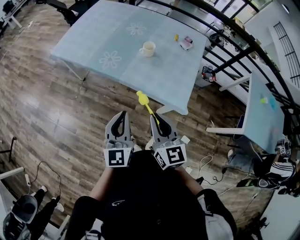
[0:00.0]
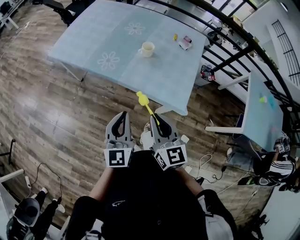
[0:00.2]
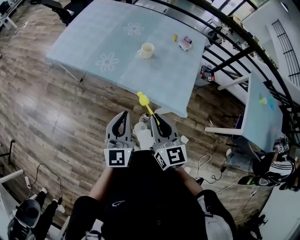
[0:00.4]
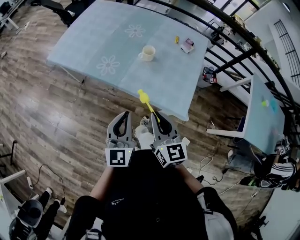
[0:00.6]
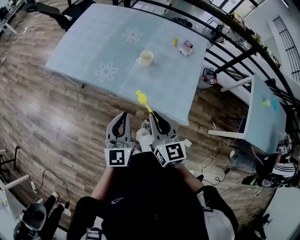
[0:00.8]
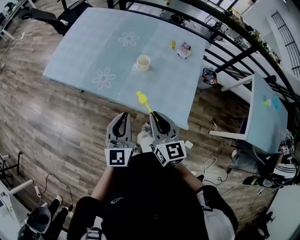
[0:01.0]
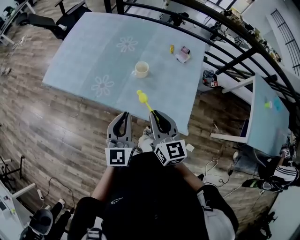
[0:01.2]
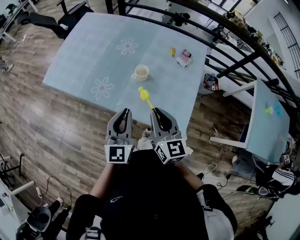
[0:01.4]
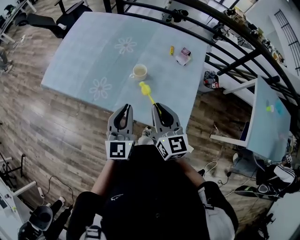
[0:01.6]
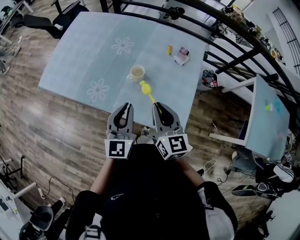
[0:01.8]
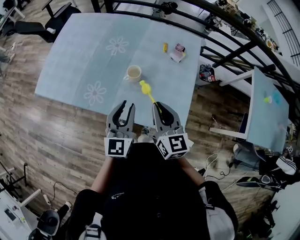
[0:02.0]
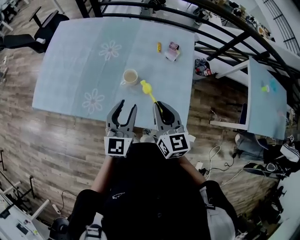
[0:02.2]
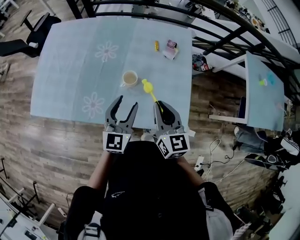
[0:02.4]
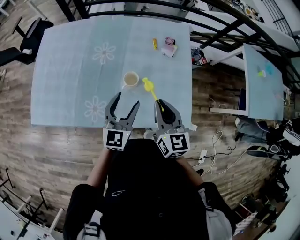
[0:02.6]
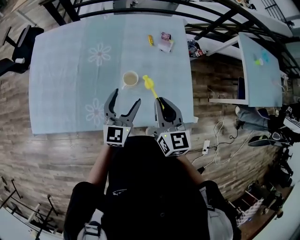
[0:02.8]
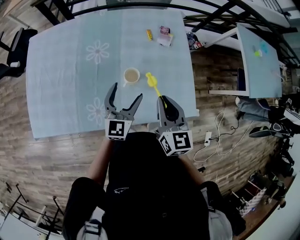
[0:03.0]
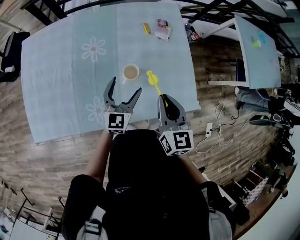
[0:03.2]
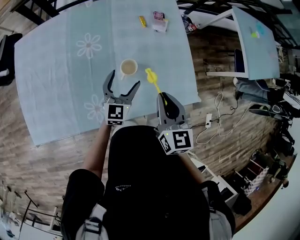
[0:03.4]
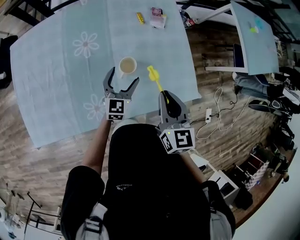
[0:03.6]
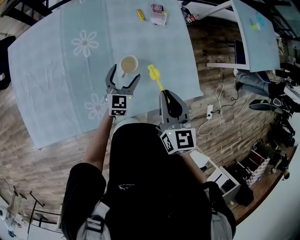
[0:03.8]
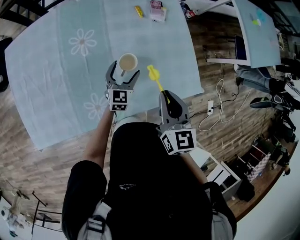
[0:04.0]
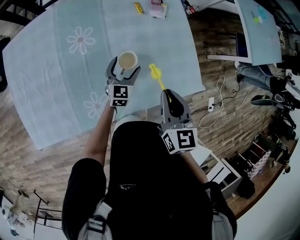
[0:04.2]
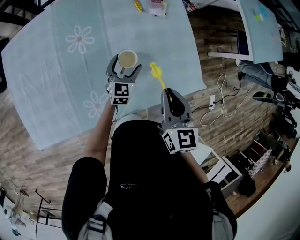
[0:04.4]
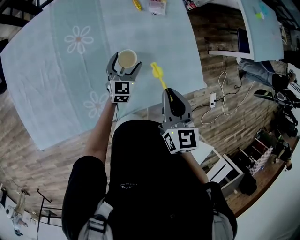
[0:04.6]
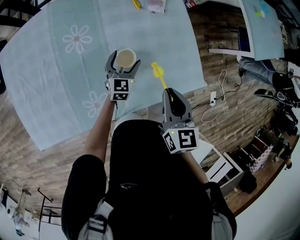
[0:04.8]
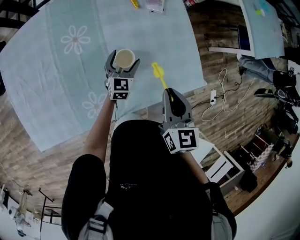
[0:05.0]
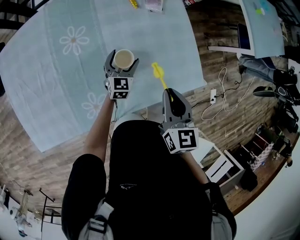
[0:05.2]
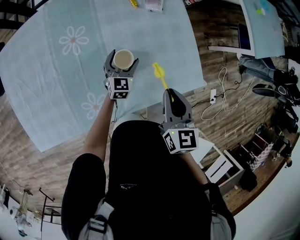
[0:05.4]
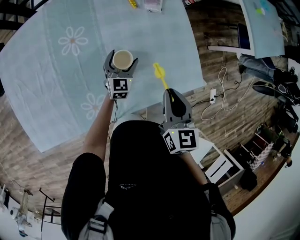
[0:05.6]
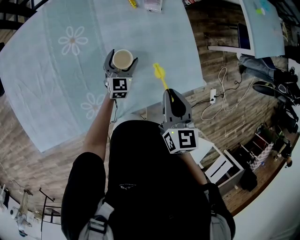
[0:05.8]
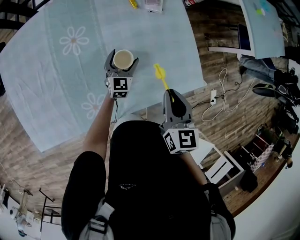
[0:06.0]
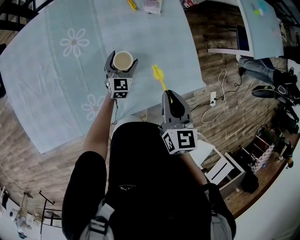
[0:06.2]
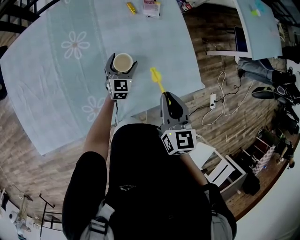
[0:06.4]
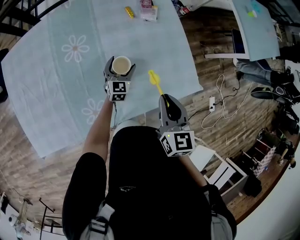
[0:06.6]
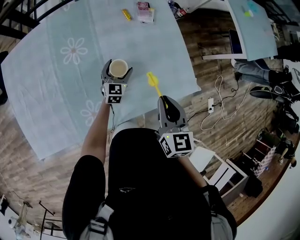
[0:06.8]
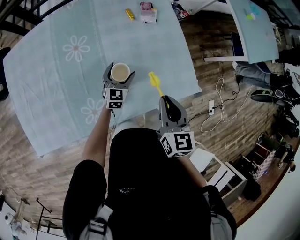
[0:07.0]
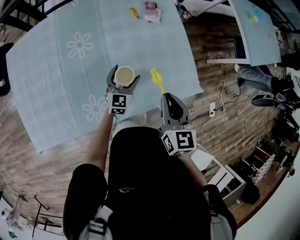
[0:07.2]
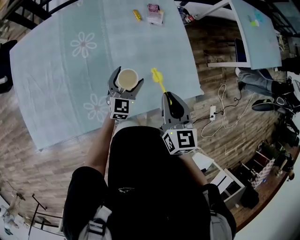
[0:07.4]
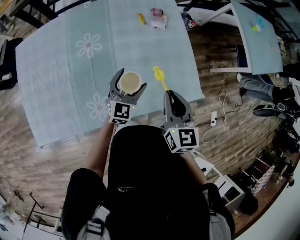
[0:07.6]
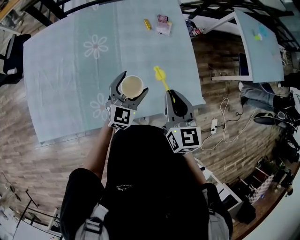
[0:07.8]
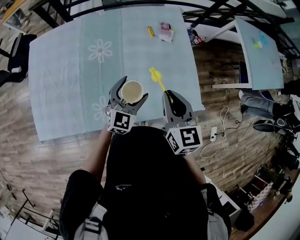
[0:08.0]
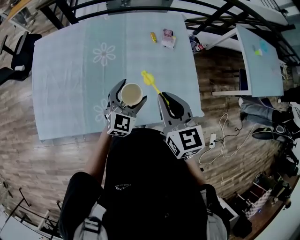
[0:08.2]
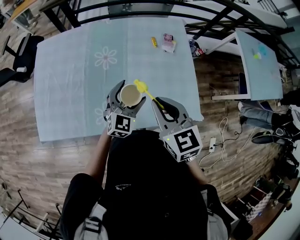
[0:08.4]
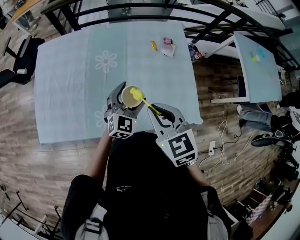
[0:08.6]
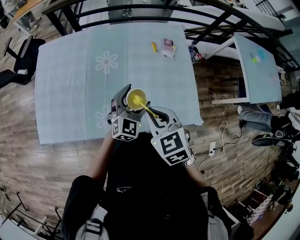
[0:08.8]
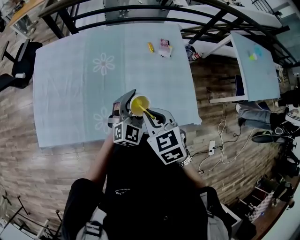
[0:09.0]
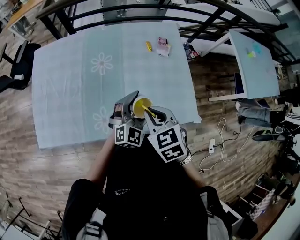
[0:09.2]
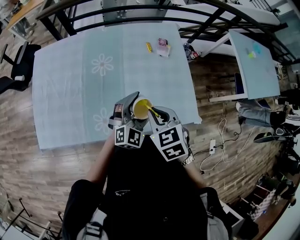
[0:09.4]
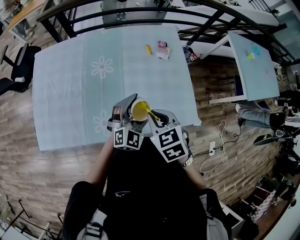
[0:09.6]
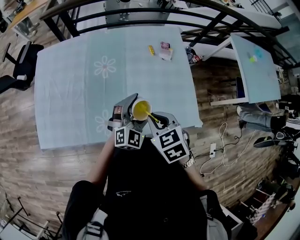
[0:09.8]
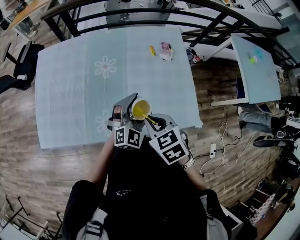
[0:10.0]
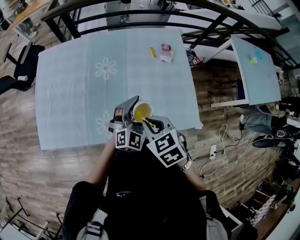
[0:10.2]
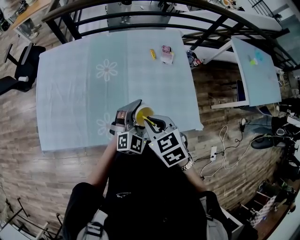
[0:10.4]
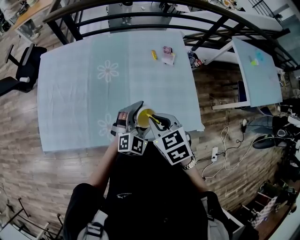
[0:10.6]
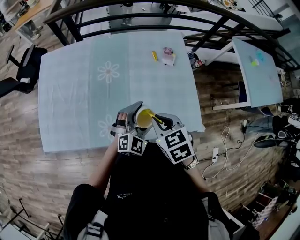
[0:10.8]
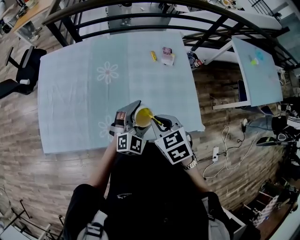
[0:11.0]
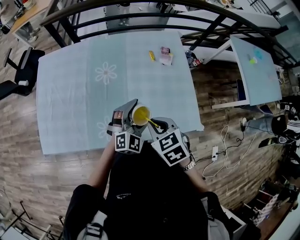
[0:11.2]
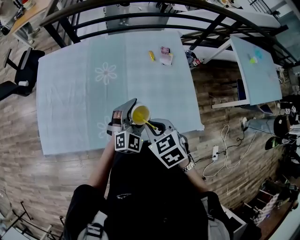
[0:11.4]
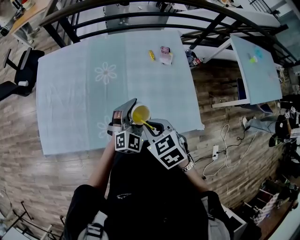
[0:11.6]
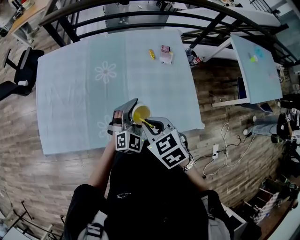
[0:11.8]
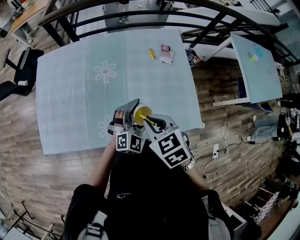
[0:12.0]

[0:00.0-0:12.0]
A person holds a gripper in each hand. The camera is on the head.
0:00.0 to 0:01.6: The grippers both shift forward by approximately 25 cm.
0:01.6 to 0:03.0: The left gripper changes place by roughly 20 cm, turns by roughly 30 degrees, and opens; the right gripper ends up some 10 cm from where it was, and turns by about 30 degrees.
0:03.0 to 0:04.4: The left gripper is displaced downward and forward by roughly 20 cm, and swivels roughly 20 degrees.
0:04.4 to 0:06.0: The grippers make only small movements.
0:06.0 to 0:07.6: The left gripper moves upward and backward, about 15 cm.
0:07.6 to 0:09.0: The right gripper travels to the left by about 10 cm, and swivels roughly 40 degrees. The left gripper goes roughly 10 cm upward.
0:09.0 to 0:12.0: There are only small adjustments of the grippers.

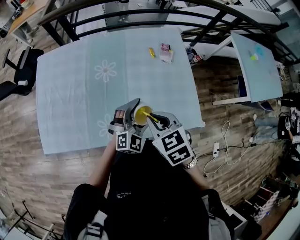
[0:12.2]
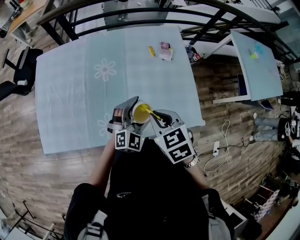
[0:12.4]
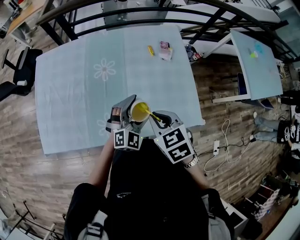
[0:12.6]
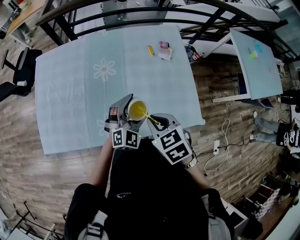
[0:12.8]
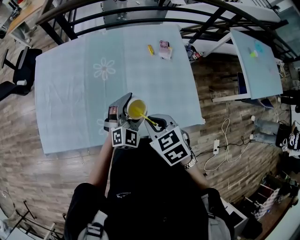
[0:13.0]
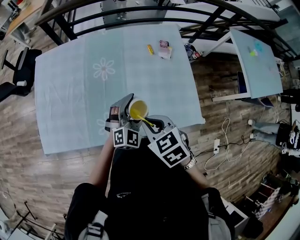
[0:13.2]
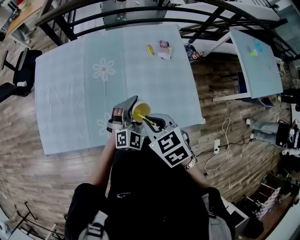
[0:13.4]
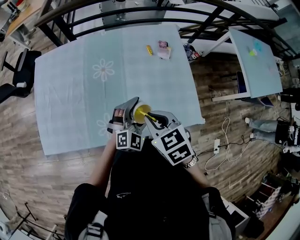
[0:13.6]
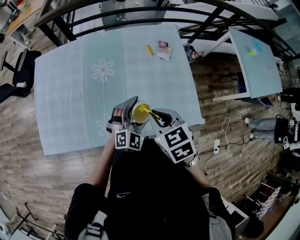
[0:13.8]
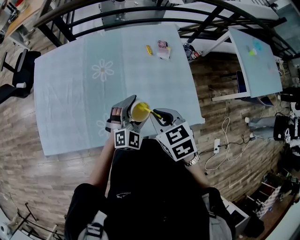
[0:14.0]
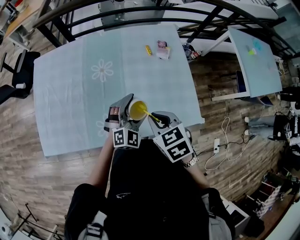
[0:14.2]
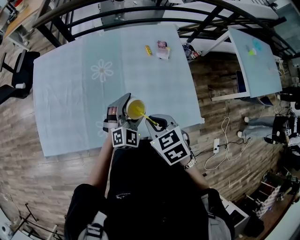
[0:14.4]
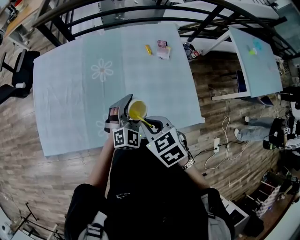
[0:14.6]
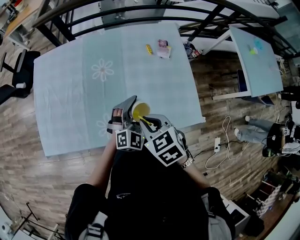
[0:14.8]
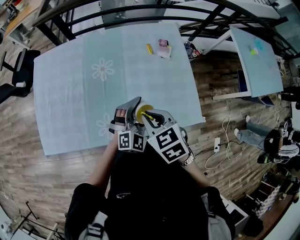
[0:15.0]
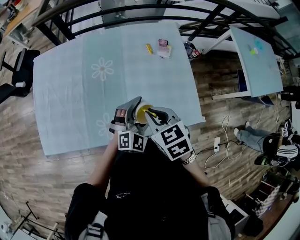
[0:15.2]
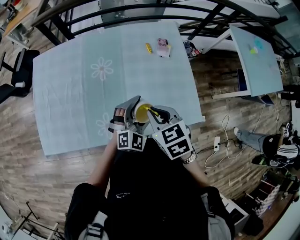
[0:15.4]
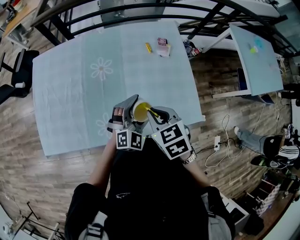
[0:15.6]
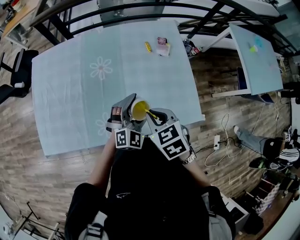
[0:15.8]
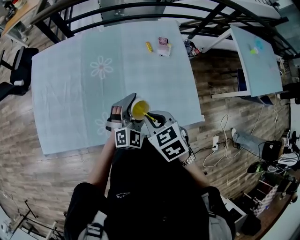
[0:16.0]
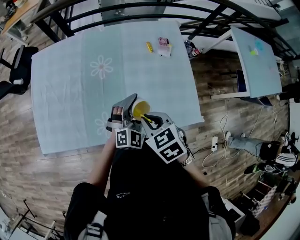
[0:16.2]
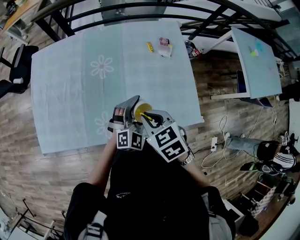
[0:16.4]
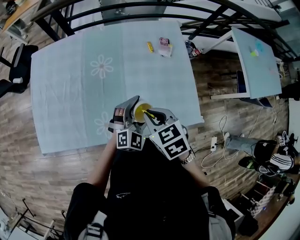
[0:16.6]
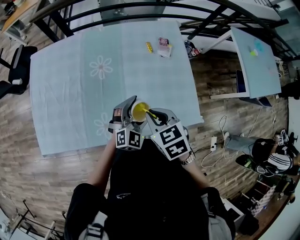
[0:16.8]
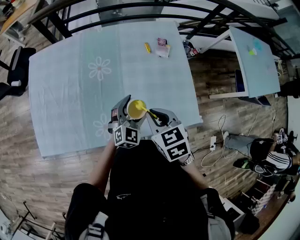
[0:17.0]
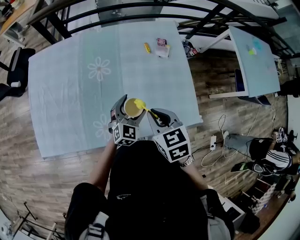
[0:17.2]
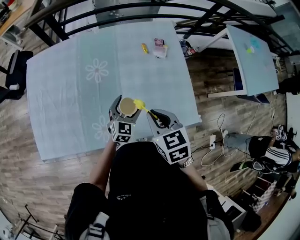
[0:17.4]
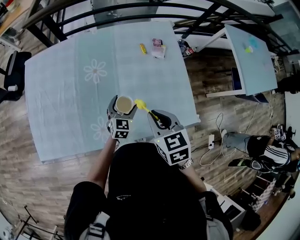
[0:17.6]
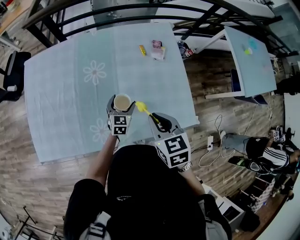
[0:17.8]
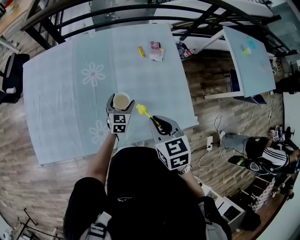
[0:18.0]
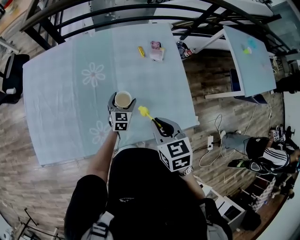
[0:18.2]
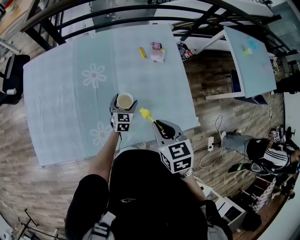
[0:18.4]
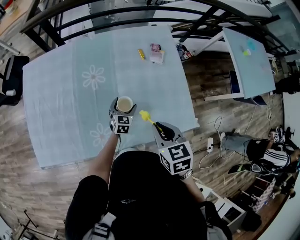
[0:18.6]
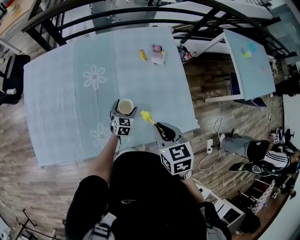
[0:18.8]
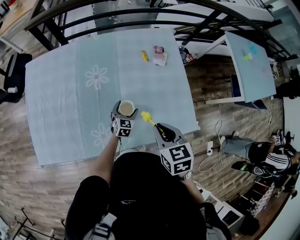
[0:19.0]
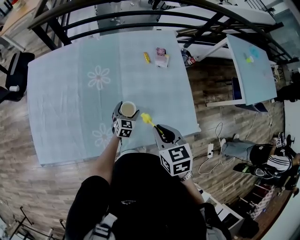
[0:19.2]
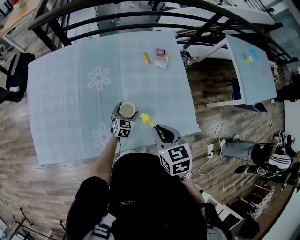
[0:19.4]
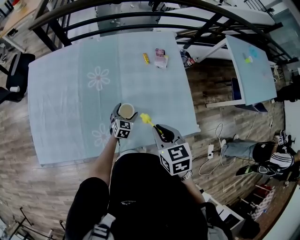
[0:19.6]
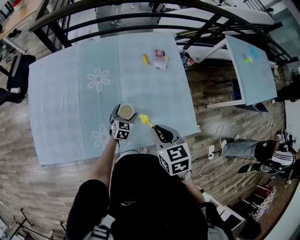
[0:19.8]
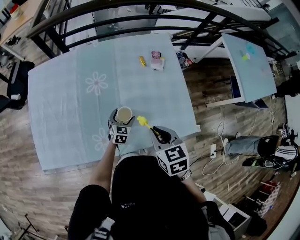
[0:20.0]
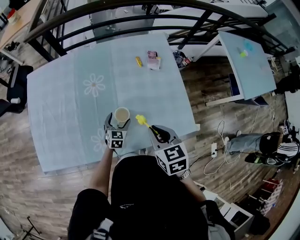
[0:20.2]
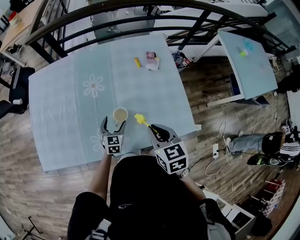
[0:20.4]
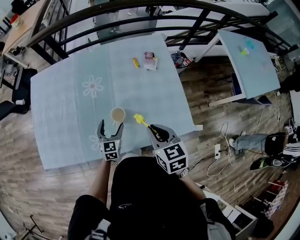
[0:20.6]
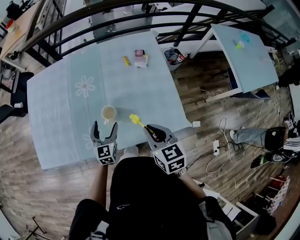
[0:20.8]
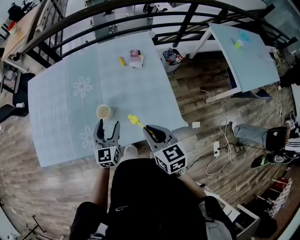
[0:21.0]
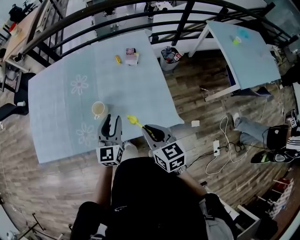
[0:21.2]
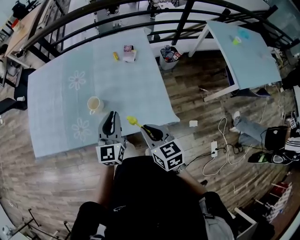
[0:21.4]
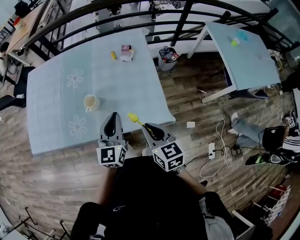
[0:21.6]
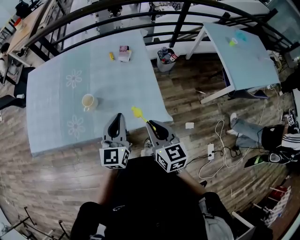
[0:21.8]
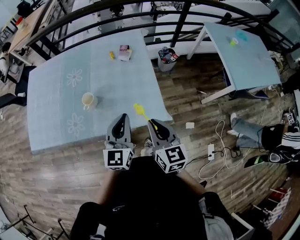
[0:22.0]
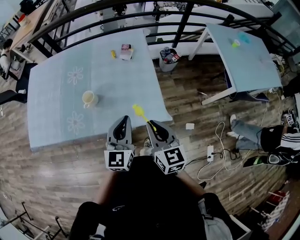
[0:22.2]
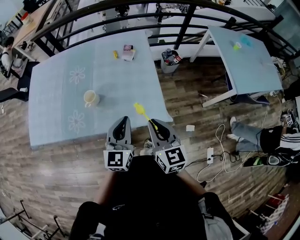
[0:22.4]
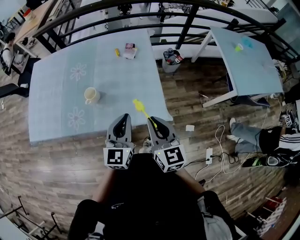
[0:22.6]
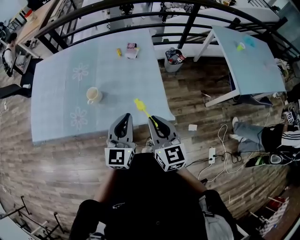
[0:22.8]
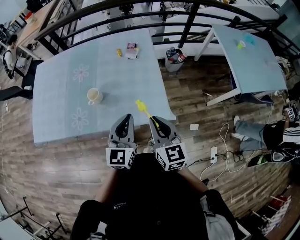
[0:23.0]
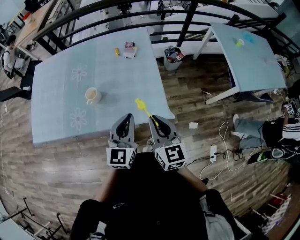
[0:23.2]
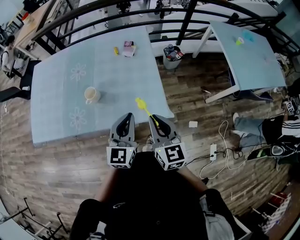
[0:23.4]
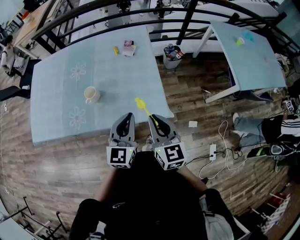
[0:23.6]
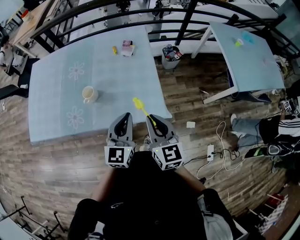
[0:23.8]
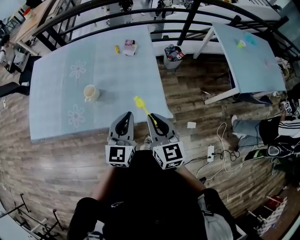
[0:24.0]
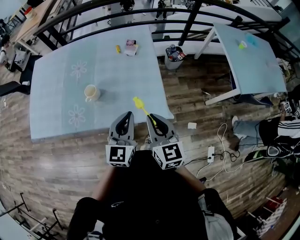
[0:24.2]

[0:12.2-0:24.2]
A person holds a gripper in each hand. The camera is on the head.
0:12.2 to 0:16.6: The grippers make only small movements.
0:16.6 to 0:18.2: The right gripper moves to the right, approximately 5 cm. Meanwhile the left gripper goes some 20 cm downward and forward, and turns by some 40 degrees.
0:18.2 to 0:19.8: The left gripper changes place by some 5 cm.
0:19.8 to 0:21.2: The left gripper is displaced upward and backward by some 25 cm, rotates some 30 degrees, and closes up. The right gripper heads to the right and backward, covering about 15 cm.
0:21.2 to 0:22.6: Both grippers travel together to the right and backward, some 15 cm. The left gripper closes up.
0:22.6 to 0:24.2: The grippers stay close to where they were, moving slightly.
